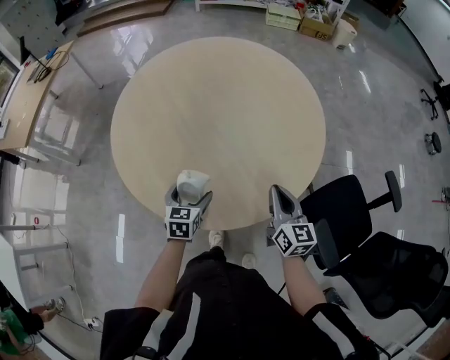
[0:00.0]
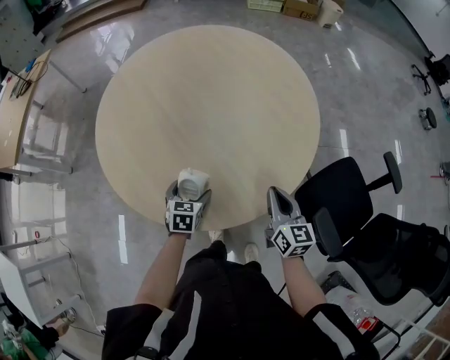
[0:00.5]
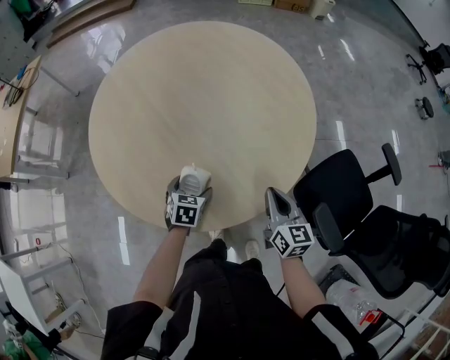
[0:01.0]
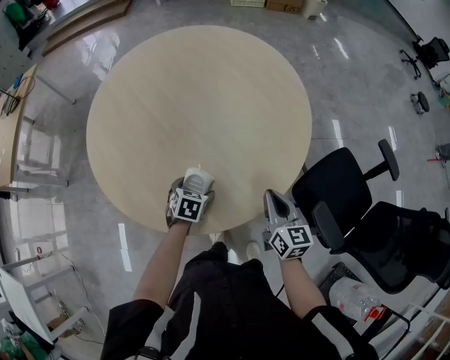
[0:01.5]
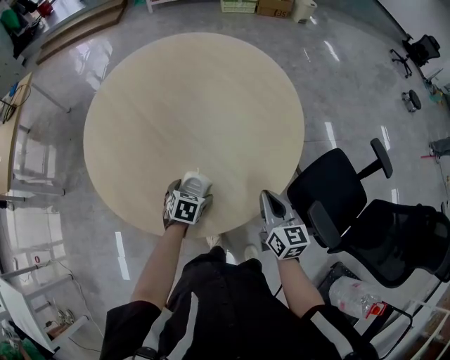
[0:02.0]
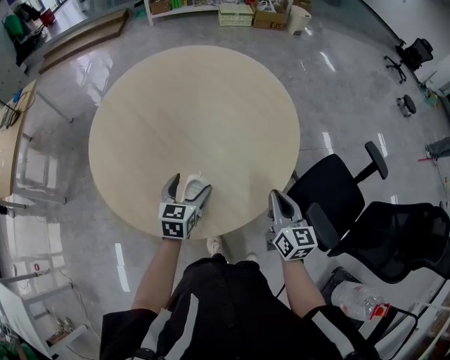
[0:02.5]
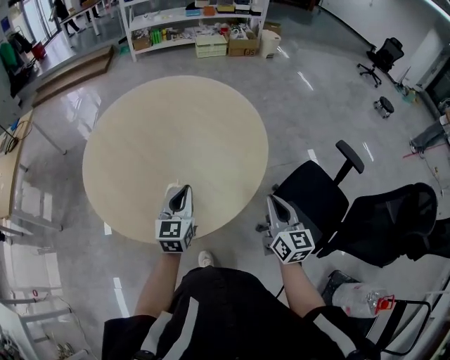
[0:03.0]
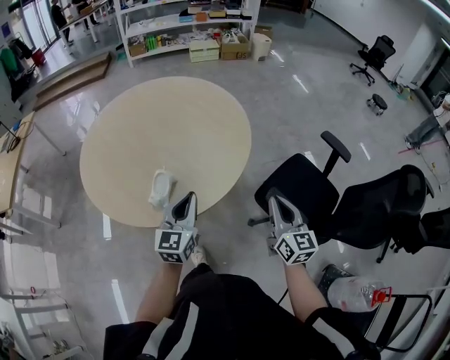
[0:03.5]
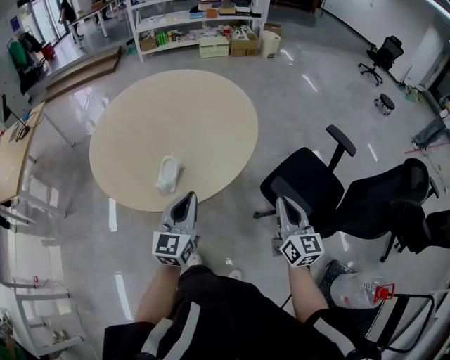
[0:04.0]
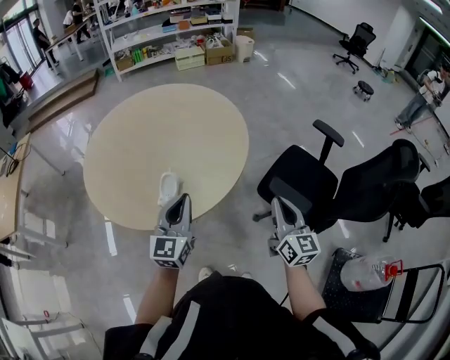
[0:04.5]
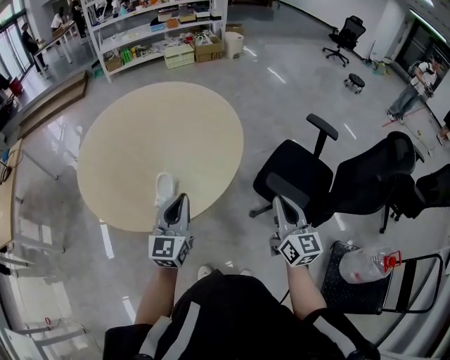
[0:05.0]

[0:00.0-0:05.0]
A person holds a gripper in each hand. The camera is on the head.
0:00.0 to 0:02.5: The left gripper goes some 10 cm forward and upward.
0:02.5 to 0:05.0: The left gripper is displaced upward, backward and to the right by some 25 cm, changes its angle by approximately 30 degrees, and closes up; the right gripper moves backward, to the right and upward, about 25 cm, and rotates some 20 degrees.

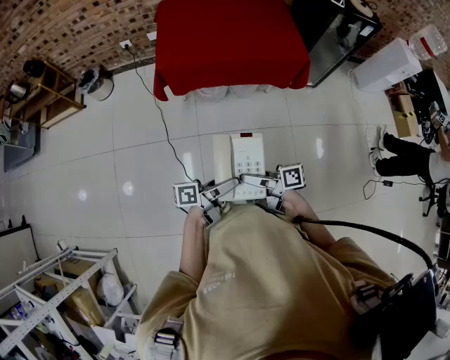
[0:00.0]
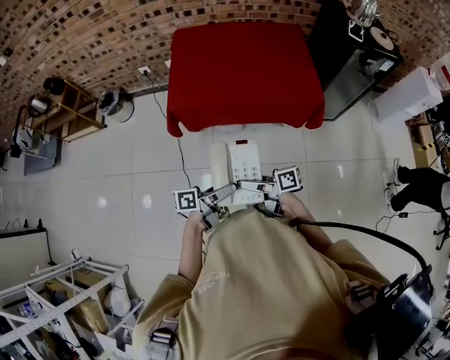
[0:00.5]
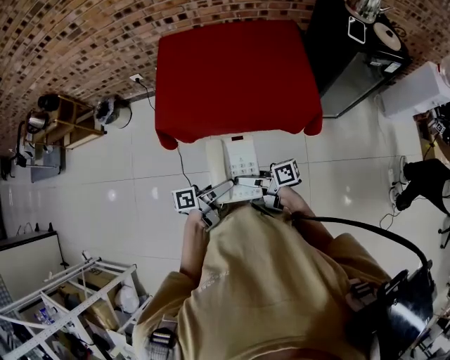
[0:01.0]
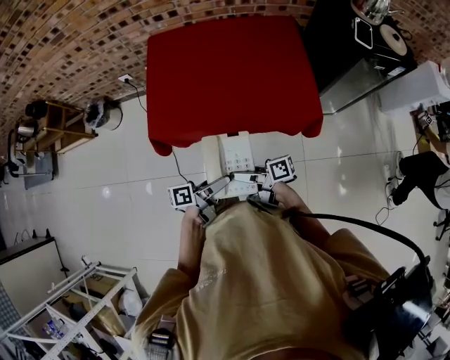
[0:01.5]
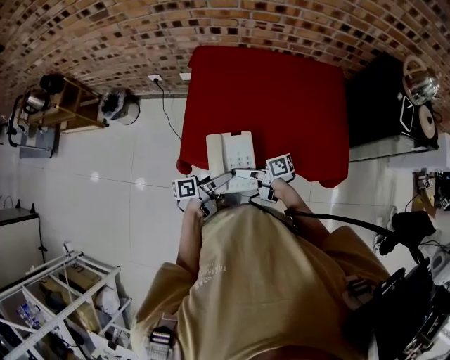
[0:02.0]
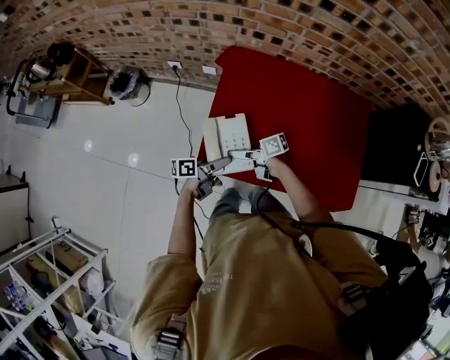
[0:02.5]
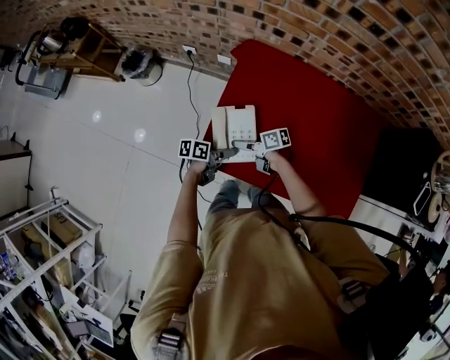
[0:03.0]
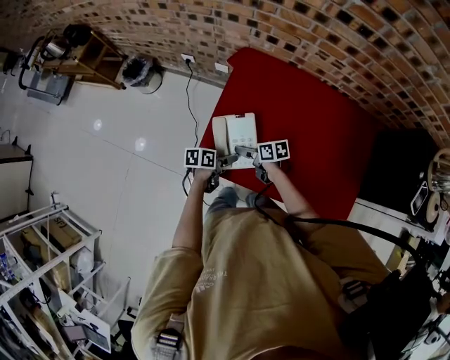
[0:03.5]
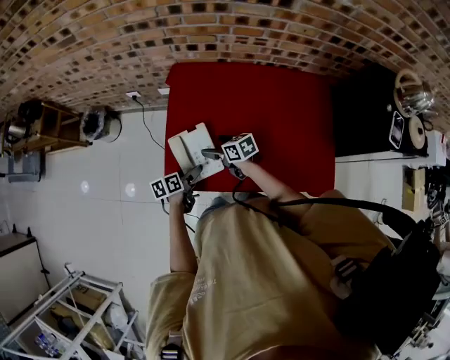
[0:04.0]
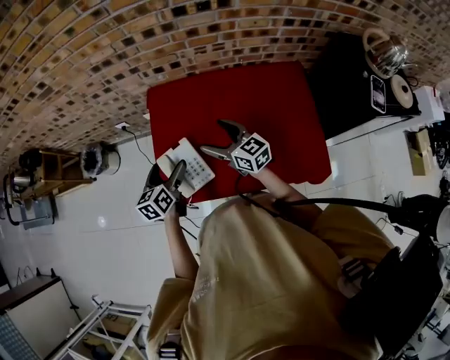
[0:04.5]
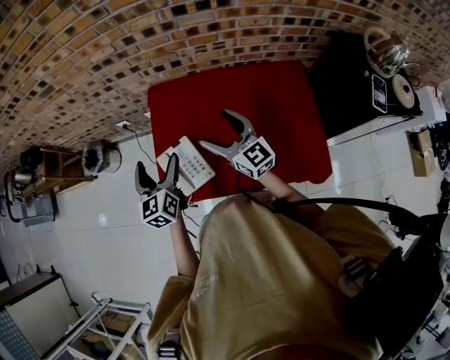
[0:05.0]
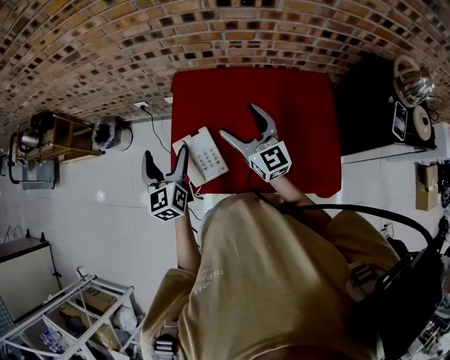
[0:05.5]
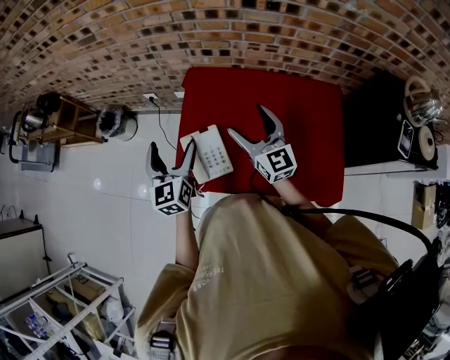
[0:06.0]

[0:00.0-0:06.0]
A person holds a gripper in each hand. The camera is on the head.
0:00.0 to 0:02.0: Both grippers are carried approximately 60 cm. The right gripper changes its angle by roughly 20 degrees.
0:02.0 to 0:04.0: The right gripper travels downward and back again, approximately 10 cm each way, turns by about 40 degrees, and opens up; the left gripper ends up roughly 20 cm from where it was, and points its fingers some 40 degrees further downward.
0:04.0 to 0:06.0: The left gripper moves upward, approximately 35 cm, and tips its fingers upward by approximately 30 degrees; the right gripper goes about 30 cm upward and to the right, and tilts its fingers some 40 degrees upward.

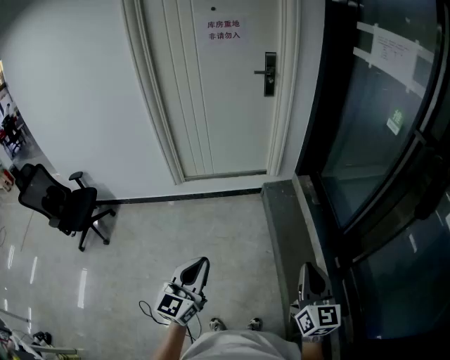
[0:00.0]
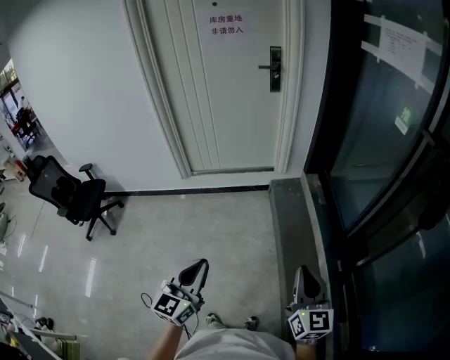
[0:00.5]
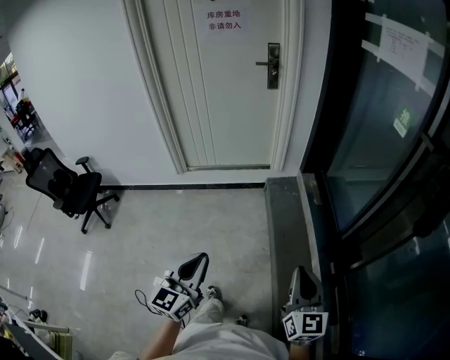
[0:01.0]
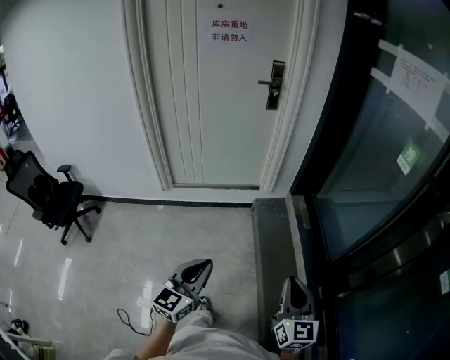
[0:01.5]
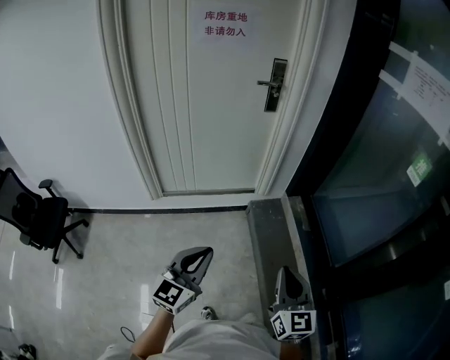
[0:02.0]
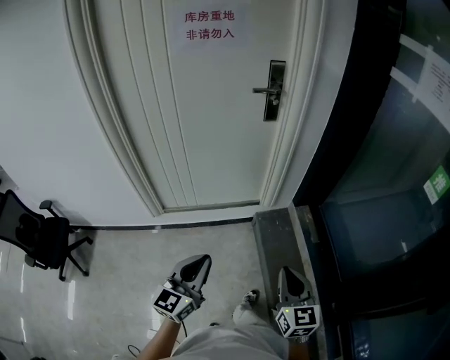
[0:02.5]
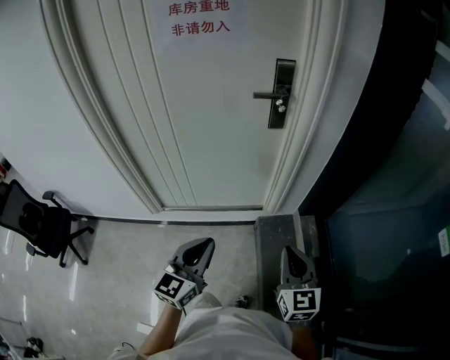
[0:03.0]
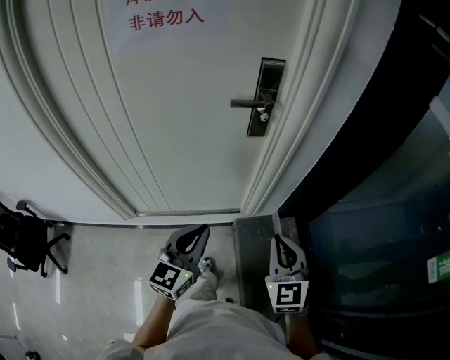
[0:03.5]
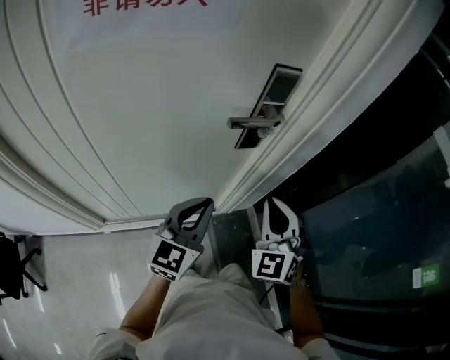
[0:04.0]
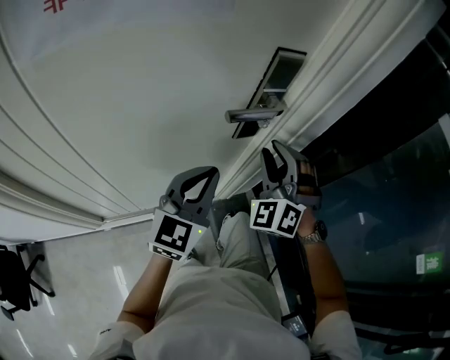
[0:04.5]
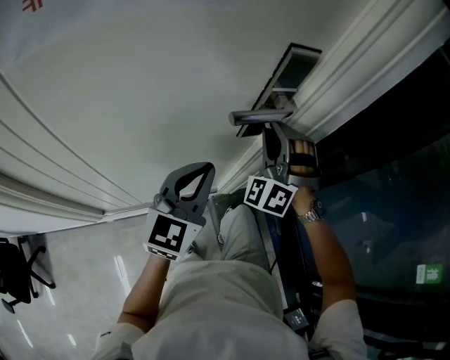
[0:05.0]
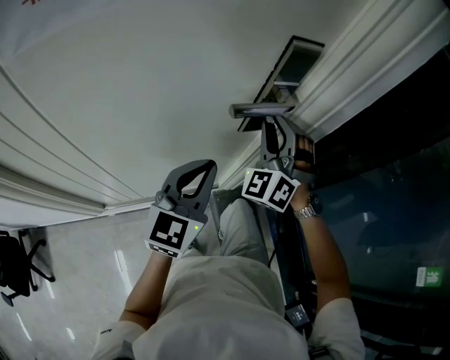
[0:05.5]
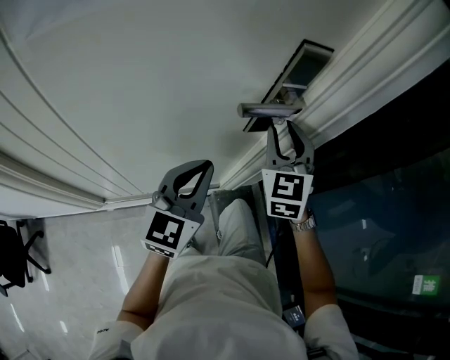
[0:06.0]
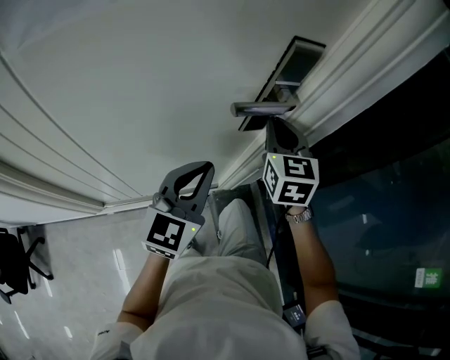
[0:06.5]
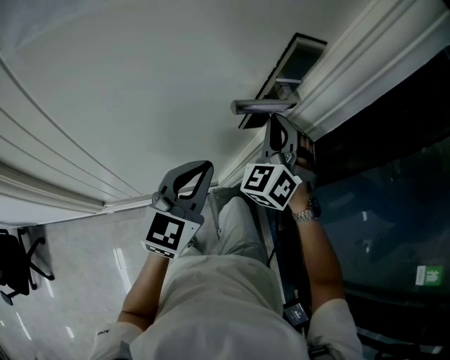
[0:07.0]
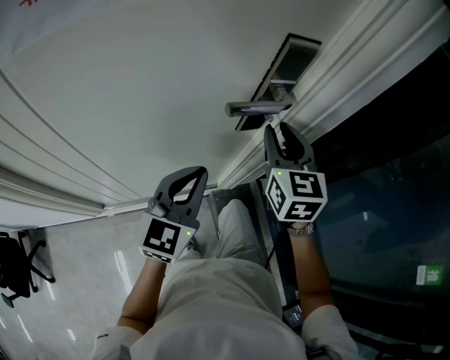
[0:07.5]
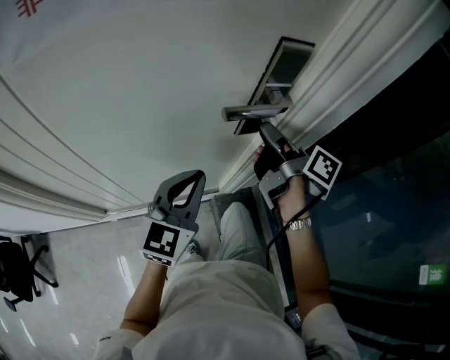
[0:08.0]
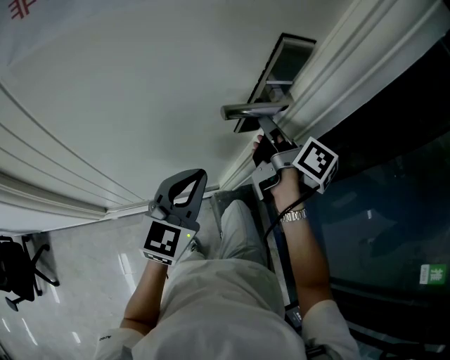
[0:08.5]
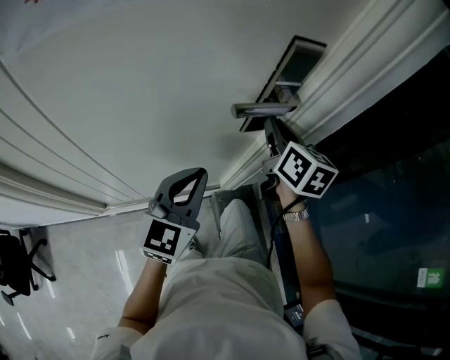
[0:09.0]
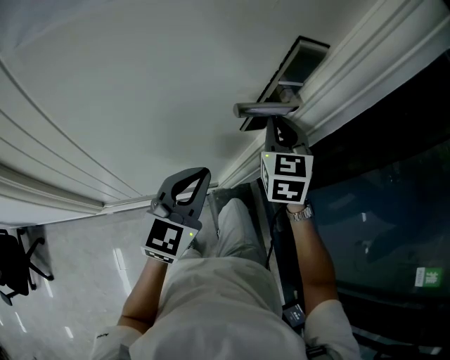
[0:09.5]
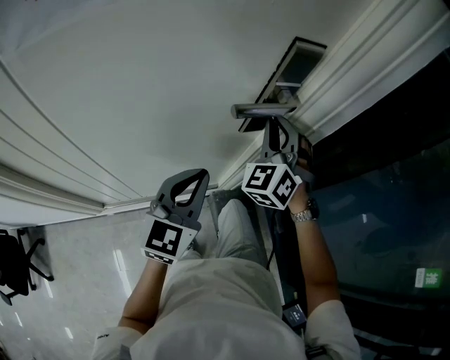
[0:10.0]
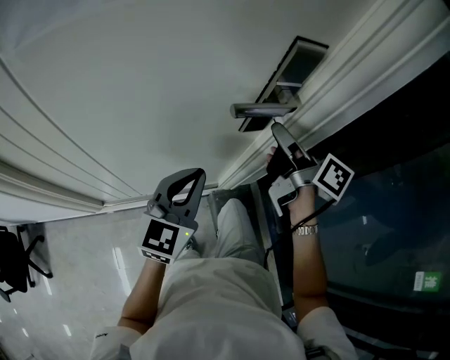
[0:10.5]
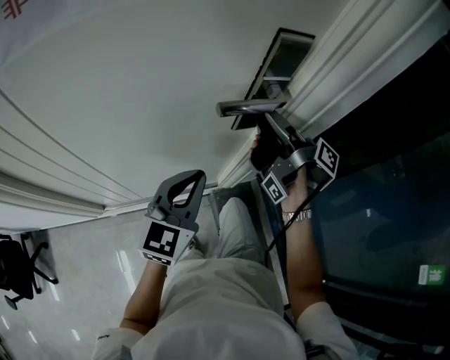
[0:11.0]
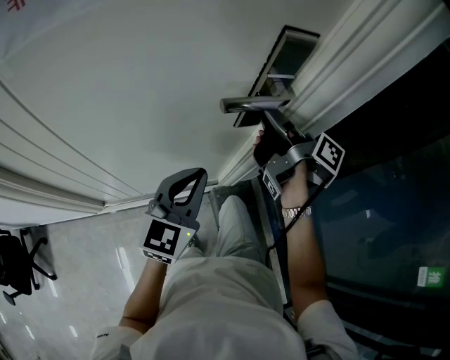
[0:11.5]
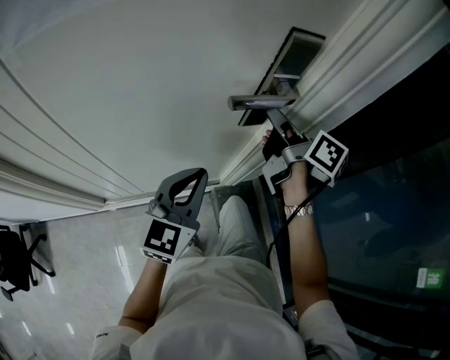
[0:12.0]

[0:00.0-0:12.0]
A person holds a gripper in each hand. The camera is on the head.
0:00.0 to 0:02.0: The grippers both shift forward by approximately 30 cm.
0:02.0 to 0:04.0: The pair of grippers is taken forward, approximately 60 cm. The right gripper twists approximately 50 degrees counterclockwise, seen from behind.
0:04.0 to 0:06.0: The right gripper shifts about 15 cm forward, and opens up, while the left gripper moves forward, about 5 cm.
0:06.0 to 0:08.0: The right gripper twists roughly 90 degrees clockwise, seen from behind.
0:08.0 to 0:10.0: The right gripper rolls counterclockwise, seen from behind, by about 120 degrees.
0:10.0 to 0:12.0: The right gripper rotates around the line of its fingers by about 110 degrees, clockwise from behind.

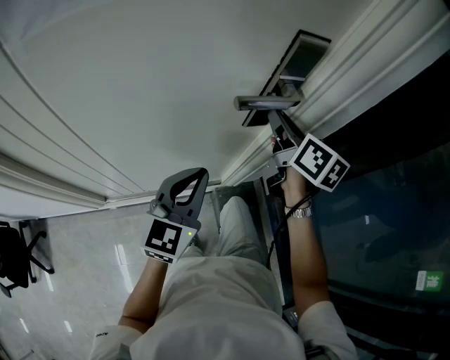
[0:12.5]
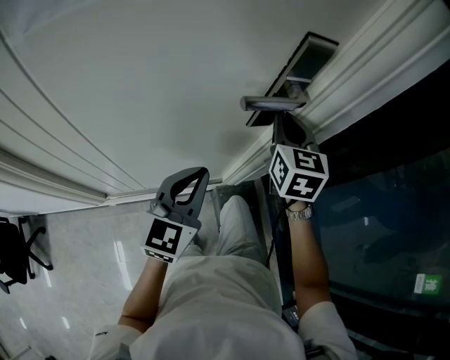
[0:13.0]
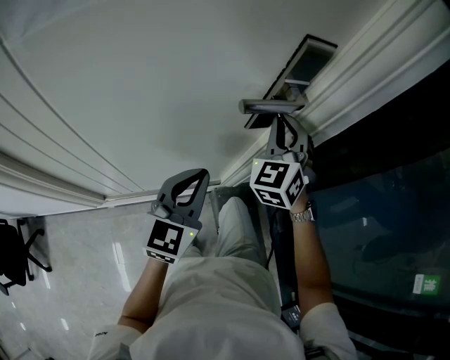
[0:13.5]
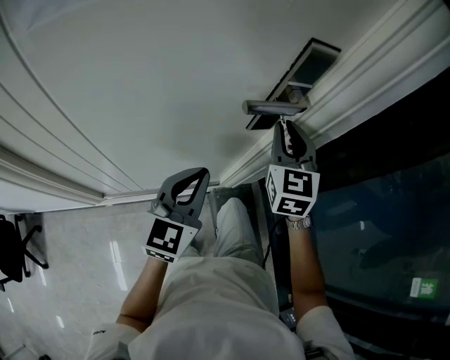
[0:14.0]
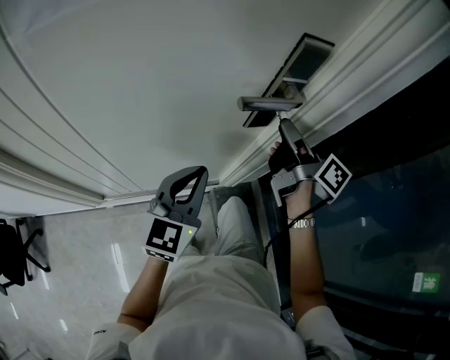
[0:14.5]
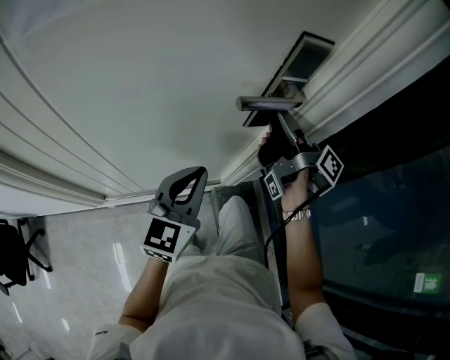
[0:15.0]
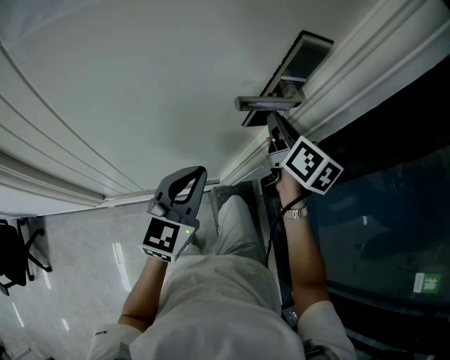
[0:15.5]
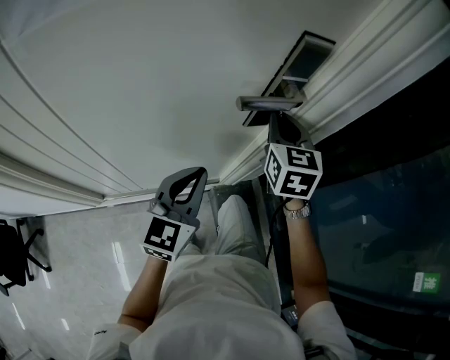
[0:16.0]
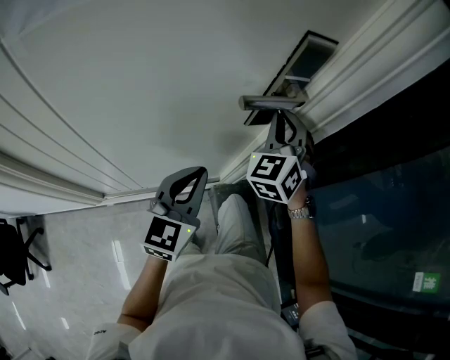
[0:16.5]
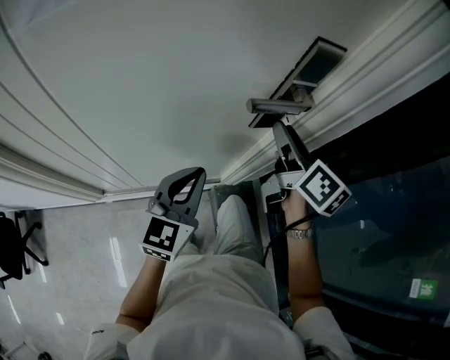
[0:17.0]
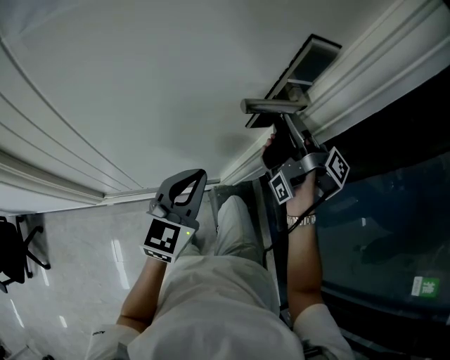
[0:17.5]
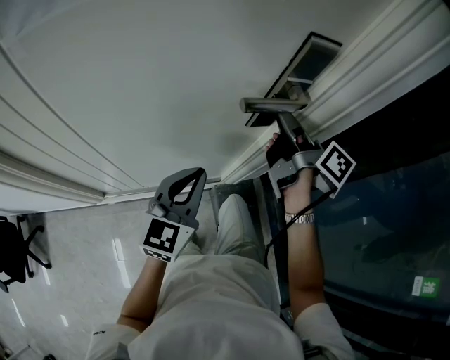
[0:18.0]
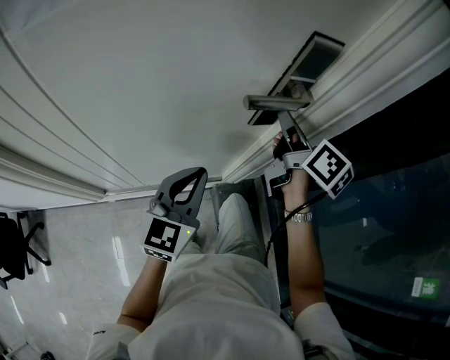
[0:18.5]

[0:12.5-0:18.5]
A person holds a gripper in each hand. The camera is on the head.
0:12.5 to 0:14.5: The right gripper changes its angle by about 30 degrees.
0:14.5 to 0:16.5: The right gripper rotates around the line of its fingers by approximately 110 degrees, counterclockwise from behind, and closes up.
0:16.5 to 0:18.5: The right gripper twists about 90 degrees clockwise, seen from behind.
